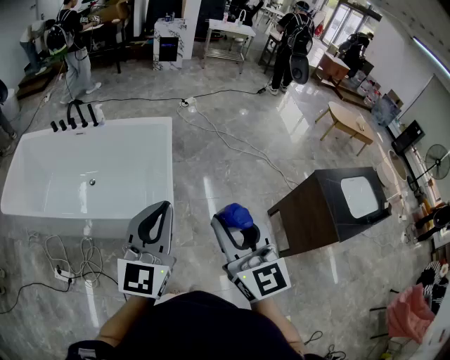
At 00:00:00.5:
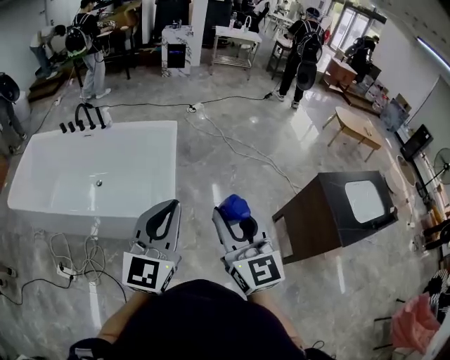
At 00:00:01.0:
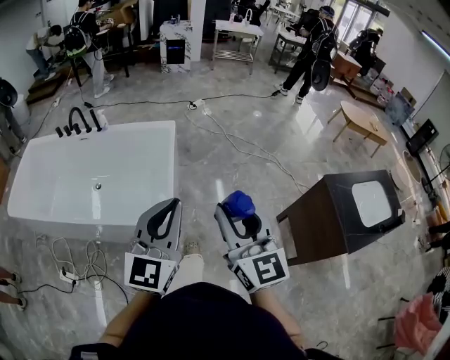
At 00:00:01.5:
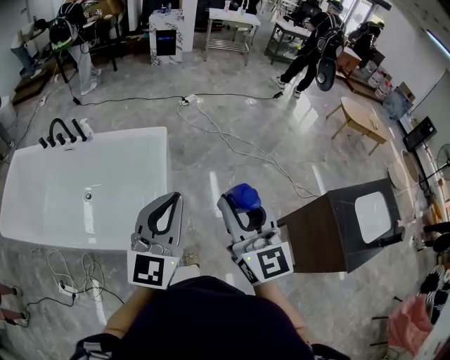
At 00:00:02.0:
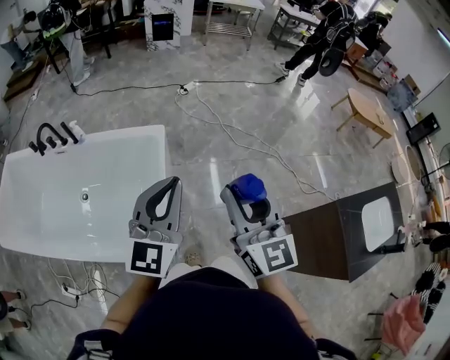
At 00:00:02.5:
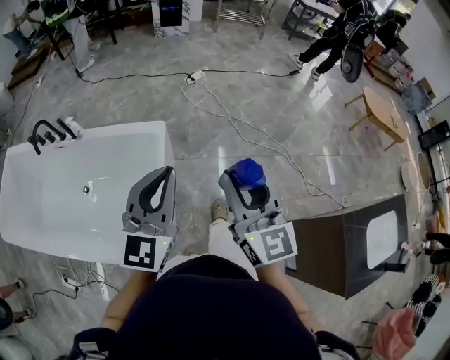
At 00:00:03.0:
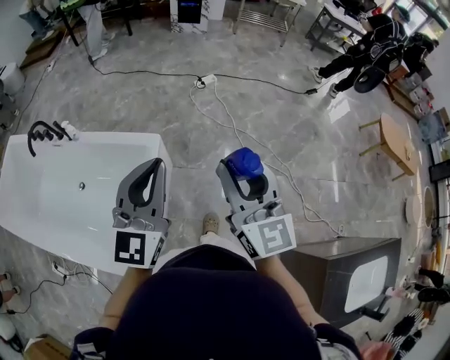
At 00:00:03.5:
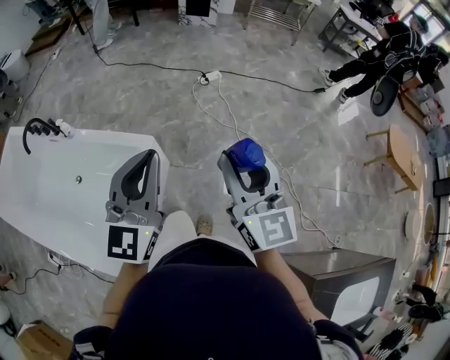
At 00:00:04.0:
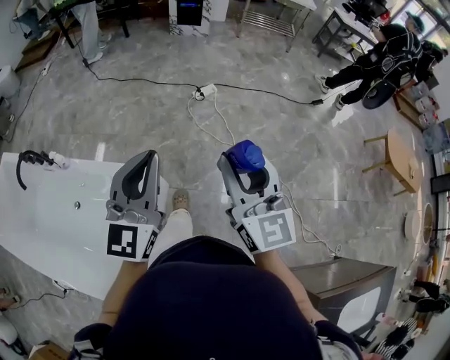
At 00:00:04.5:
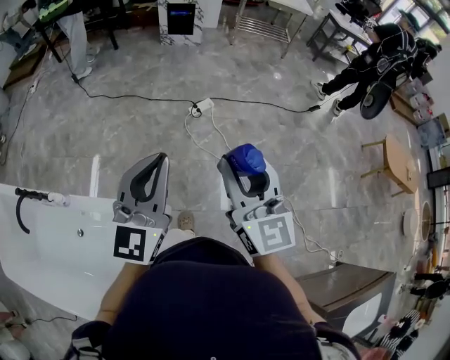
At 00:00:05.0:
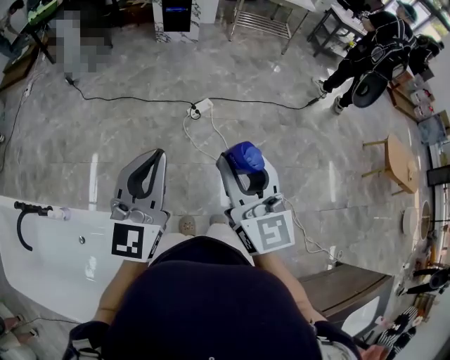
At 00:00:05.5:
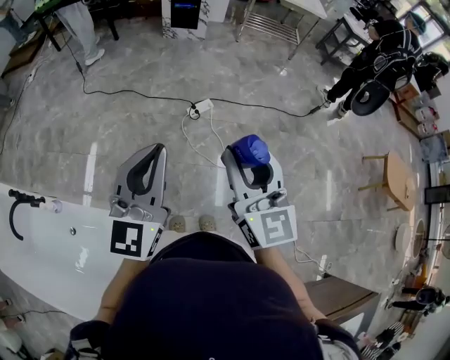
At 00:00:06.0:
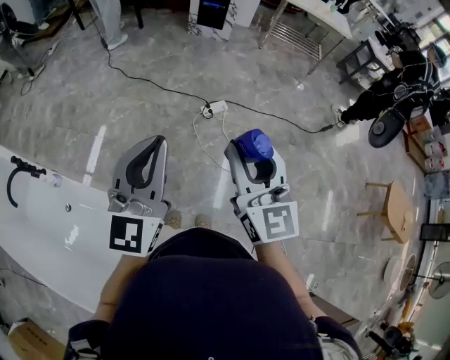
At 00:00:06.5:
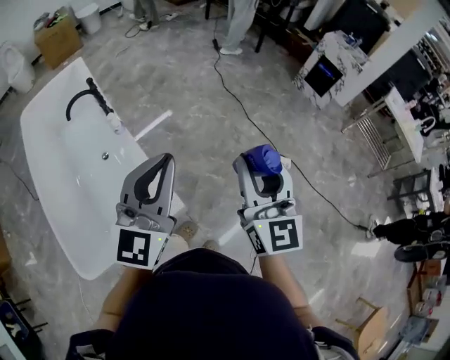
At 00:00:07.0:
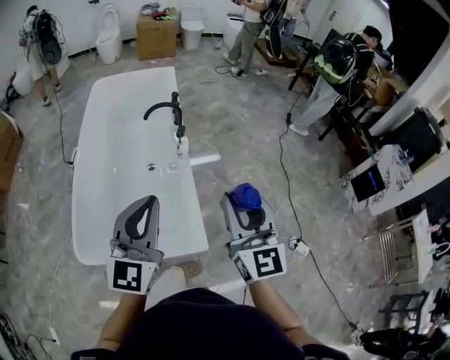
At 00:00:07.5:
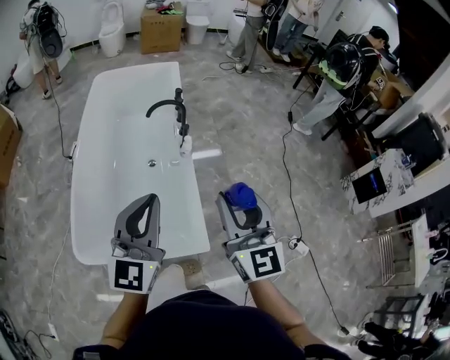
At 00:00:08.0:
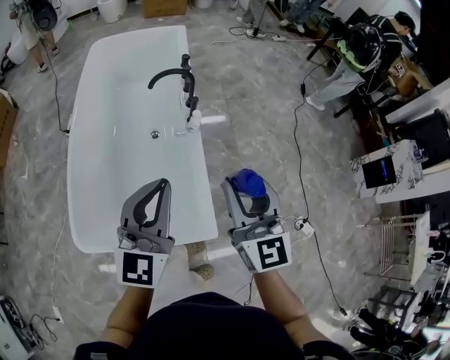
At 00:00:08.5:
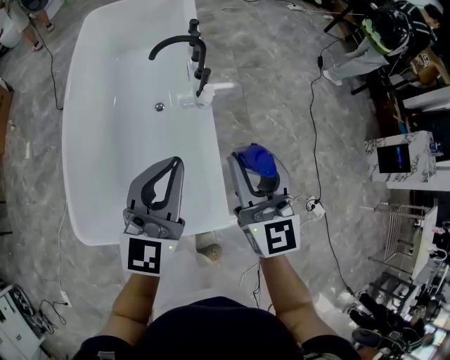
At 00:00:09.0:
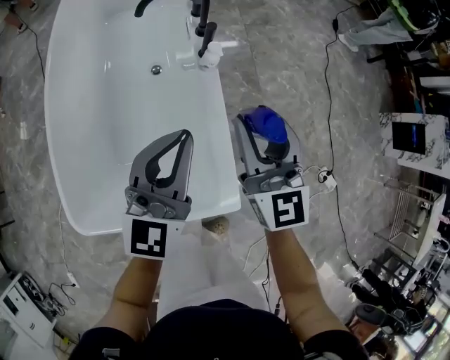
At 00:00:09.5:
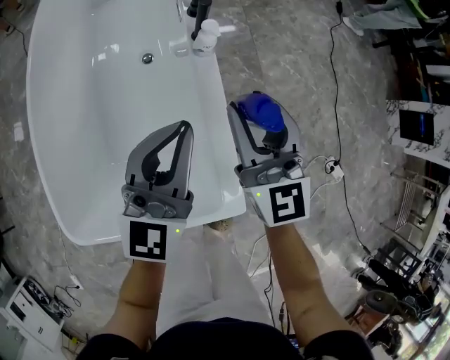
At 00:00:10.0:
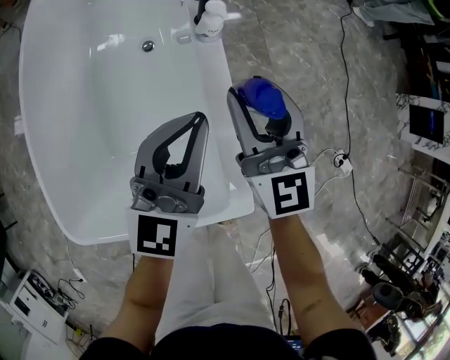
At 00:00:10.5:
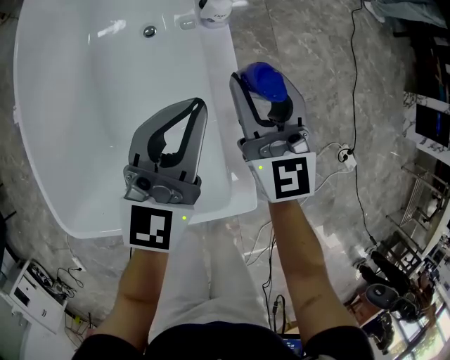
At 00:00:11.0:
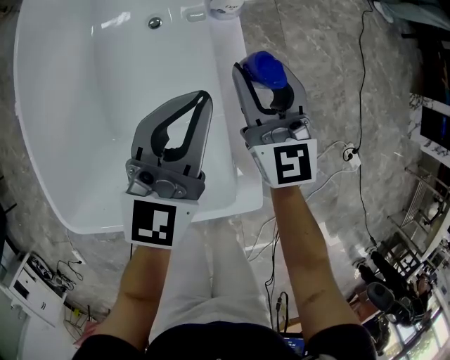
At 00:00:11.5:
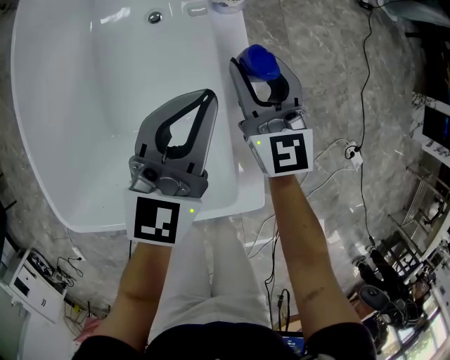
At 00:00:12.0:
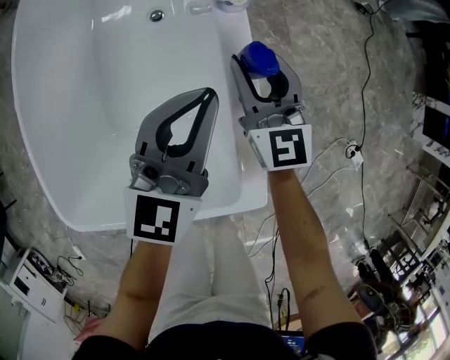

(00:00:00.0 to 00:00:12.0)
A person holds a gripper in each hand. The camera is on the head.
00:00:00.0 - 00:00:02.0: The two grippers go roughly 35 cm forward.
00:00:02.0 - 00:00:04.0: The two grippers travel together, forward, roughly 40 cm.
00:00:04.0 - 00:00:06.0: Both grippers travel together forward, some 30 cm.
00:00:06.0 - 00:00:08.0: The pair of grippers is taken some 50 cm. The right gripper turns by approximately 70 degrees, while the left gripper changes its angle by about 70 degrees.
00:00:08.0 - 00:00:10.0: The two grippers go some 30 cm downward and forward.
00:00:10.0 - 00:00:12.0: The right gripper travels downward by roughly 10 cm. The left gripper heads downward, covering approximately 5 cm.

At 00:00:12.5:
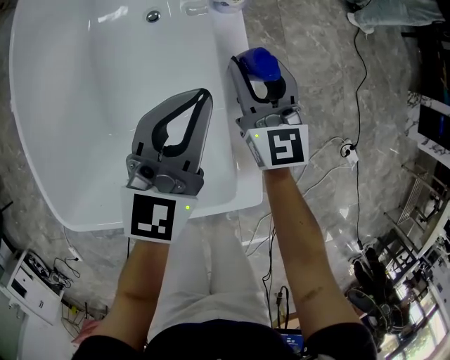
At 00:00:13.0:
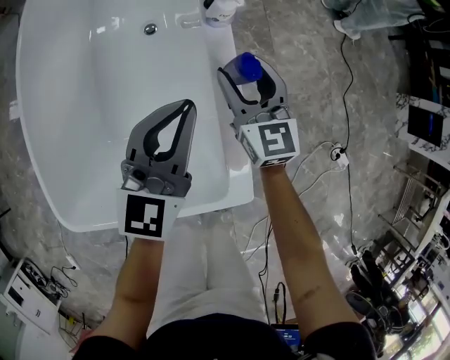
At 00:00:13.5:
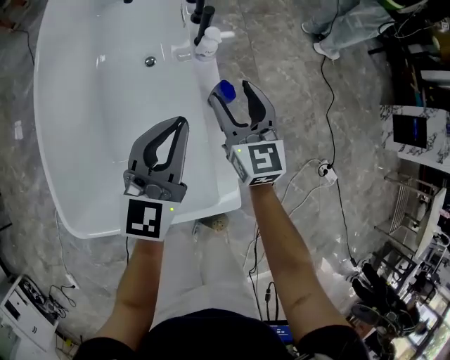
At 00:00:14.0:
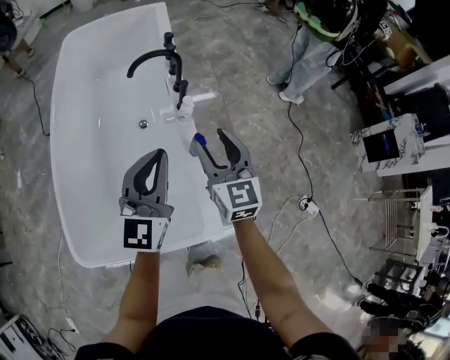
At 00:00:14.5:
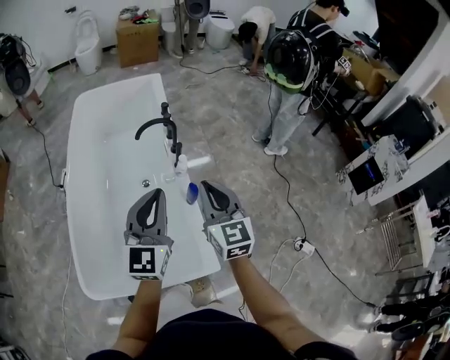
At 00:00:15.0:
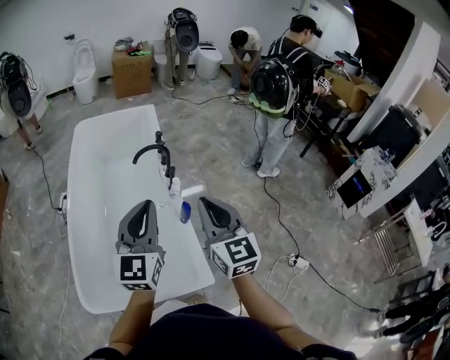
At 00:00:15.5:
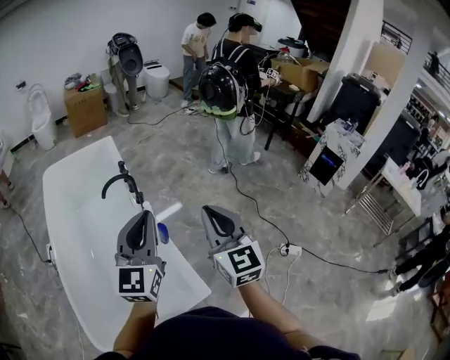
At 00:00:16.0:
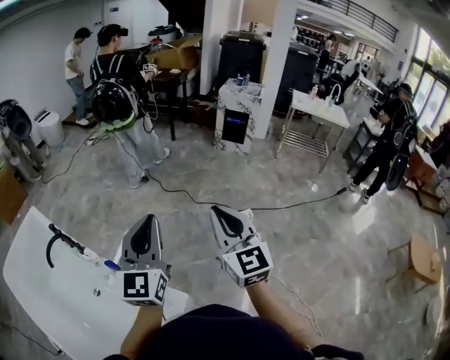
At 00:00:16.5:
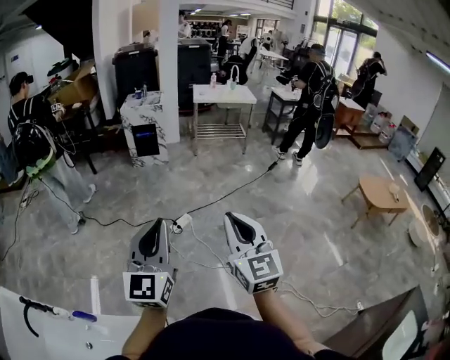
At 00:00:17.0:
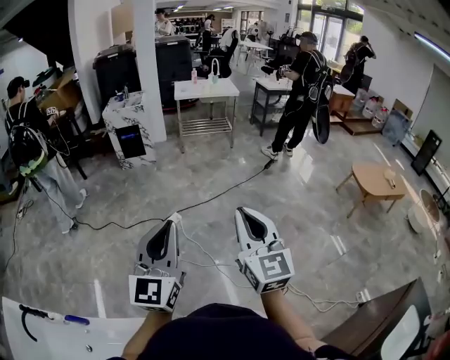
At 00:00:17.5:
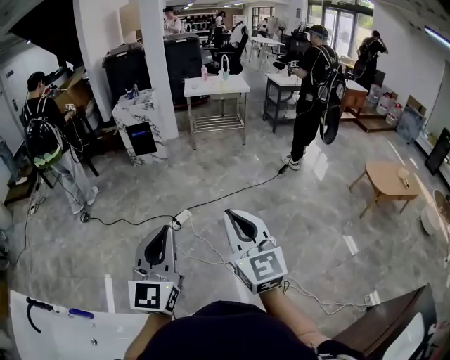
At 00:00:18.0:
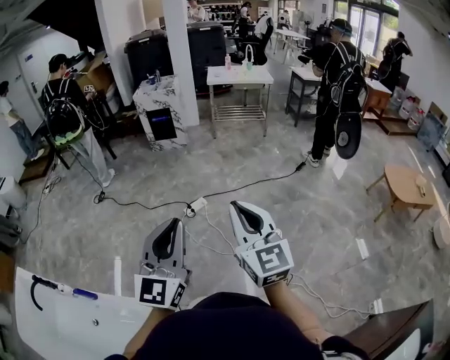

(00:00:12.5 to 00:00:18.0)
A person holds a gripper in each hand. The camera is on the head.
00:00:12.5 - 00:00:14.5: Both grippers travel together upward, some 35 cm. The right gripper closes its fingers.
00:00:14.5 - 00:00:16.0: The right gripper ends up about 40 cm from where it was, and turns by about 50 degrees, while the left gripper shifts by approximately 30 cm, and rotates some 50 degrees.
00:00:16.0 - 00:00:18.0: The pair of grippers is taken about 40 cm. The left gripper changes its angle by about 30 degrees, while the right gripper turns by approximately 30 degrees.

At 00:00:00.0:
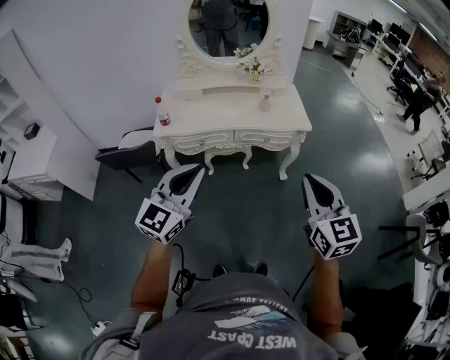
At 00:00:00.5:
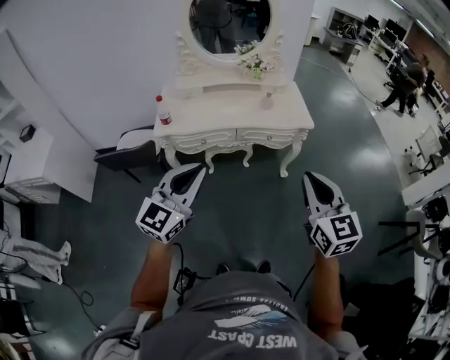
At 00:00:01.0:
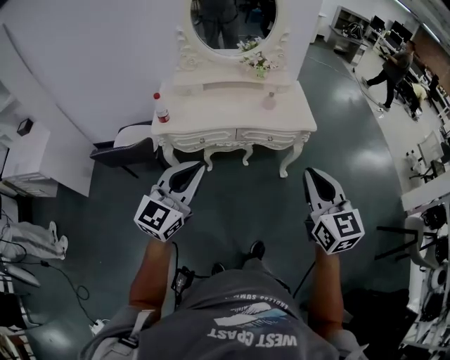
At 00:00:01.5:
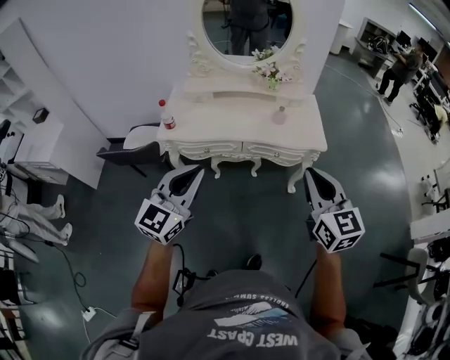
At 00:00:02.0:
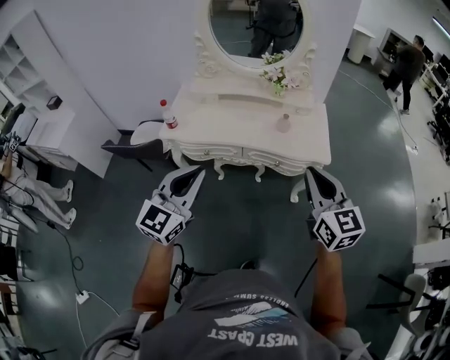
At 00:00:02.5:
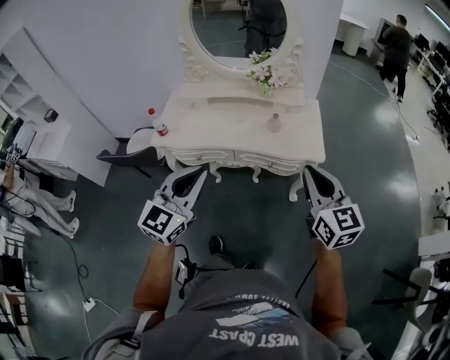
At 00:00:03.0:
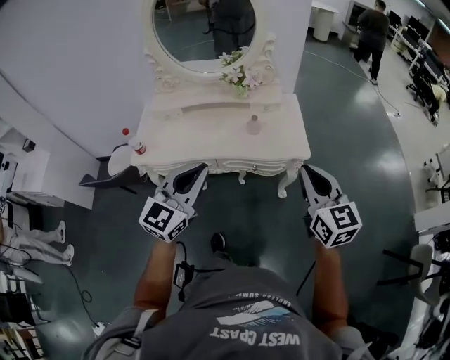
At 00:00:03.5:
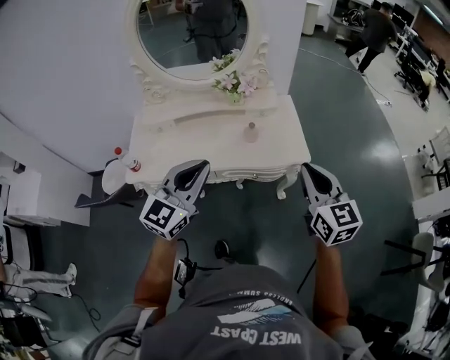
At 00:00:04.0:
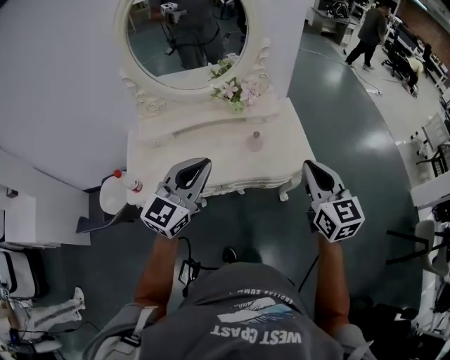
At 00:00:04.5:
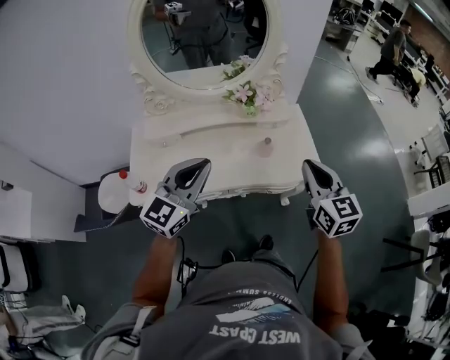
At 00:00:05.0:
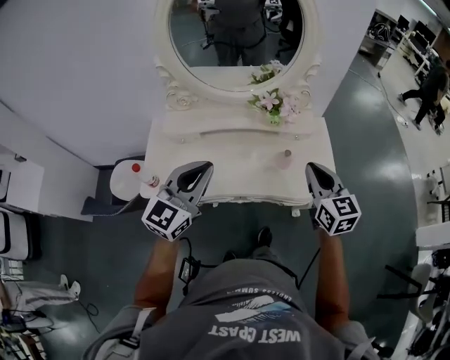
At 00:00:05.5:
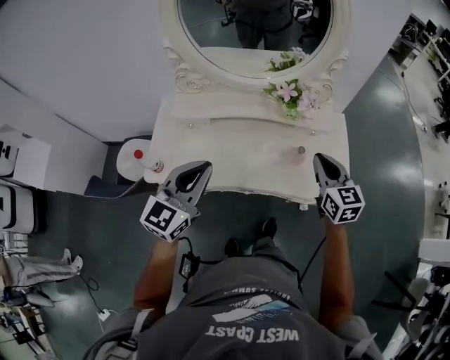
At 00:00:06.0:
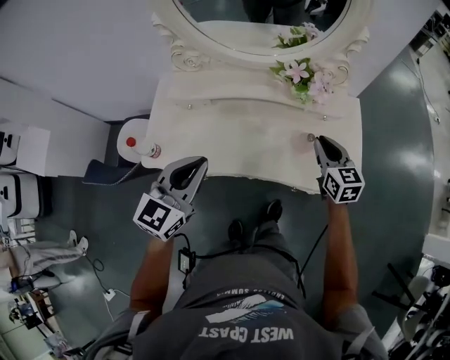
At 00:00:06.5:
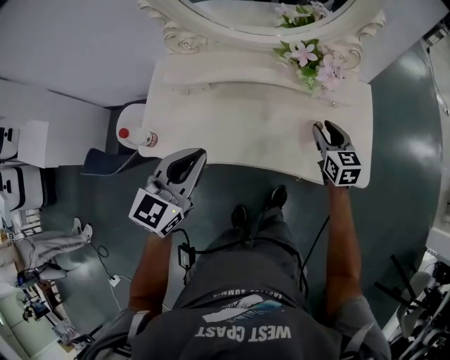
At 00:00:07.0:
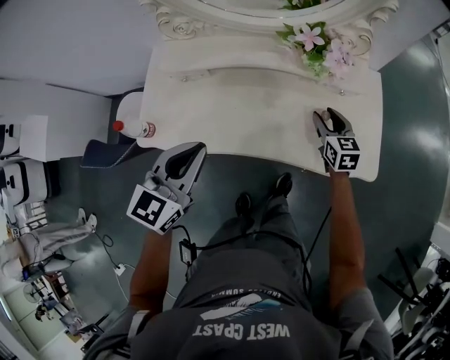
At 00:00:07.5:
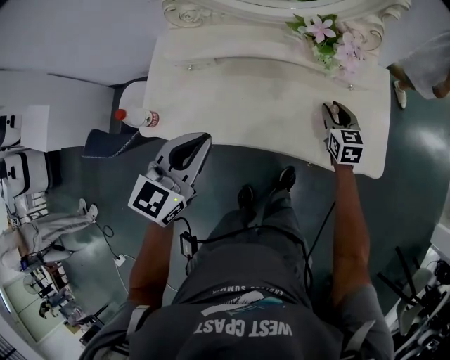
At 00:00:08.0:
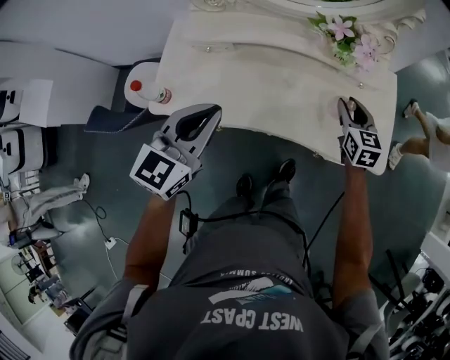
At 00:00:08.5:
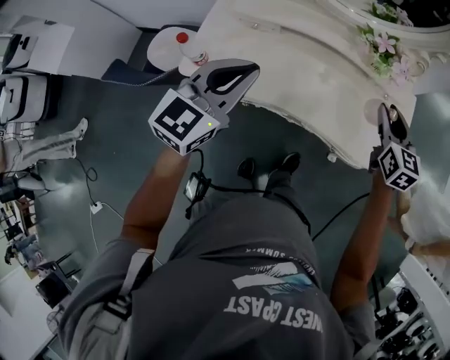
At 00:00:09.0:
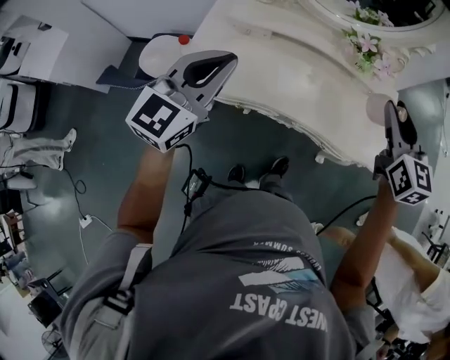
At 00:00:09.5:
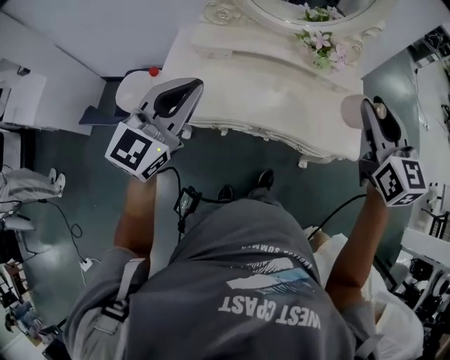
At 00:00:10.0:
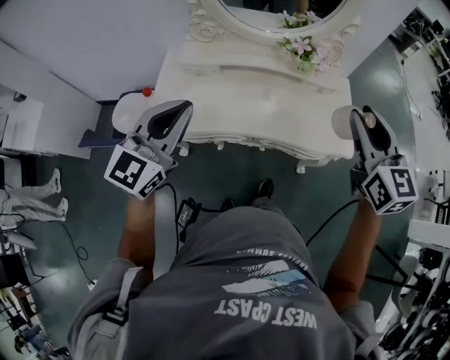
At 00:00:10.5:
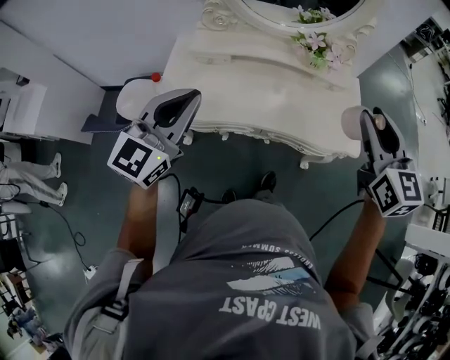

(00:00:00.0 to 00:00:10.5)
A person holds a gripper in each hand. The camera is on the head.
00:00:00.0 - 00:00:02.0: The right gripper travels forward by approximately 25 cm. Meanwhile the left gripper shifts roughly 15 cm forward.
00:00:02.0 - 00:00:04.0: The right gripper travels forward by about 15 cm, and swivels about 20 degrees, while the left gripper heads forward, covering about 25 cm, and swivels approximately 20 degrees.
00:00:04.0 - 00:00:06.5: The left gripper travels downward, to the left and forward by roughly 15 cm, and changes its angle by some 30 degrees; the right gripper moves downward and forward, some 40 cm, changes its angle by some 20 degrees, and opens up.
00:00:06.5 - 00:00:08.5: The right gripper shifts about 10 cm upward, while the left gripper goes some 5 cm to the left.
00:00:08.5 - 00:00:10.5: The left gripper moves upward and backward, some 10 cm; the right gripper goes about 25 cm upward and backward.
